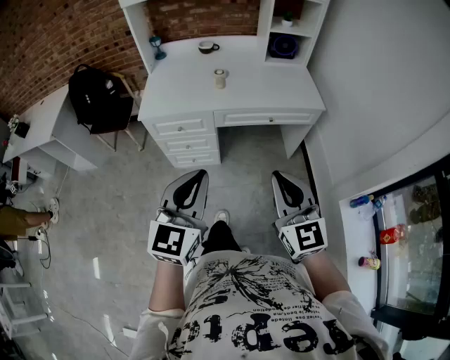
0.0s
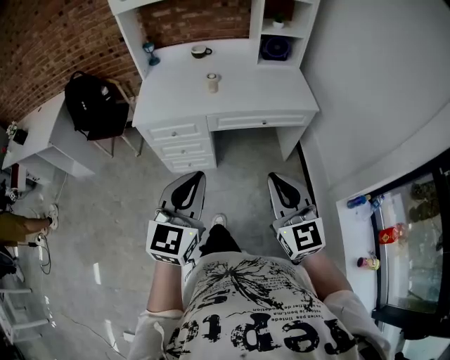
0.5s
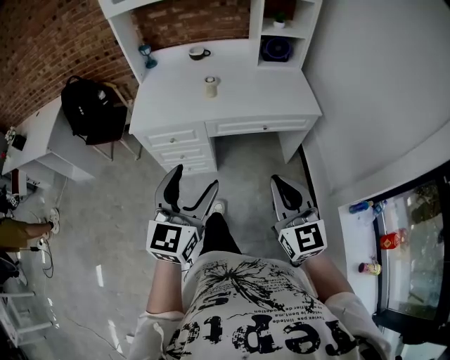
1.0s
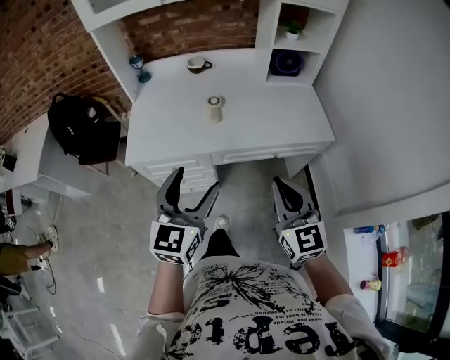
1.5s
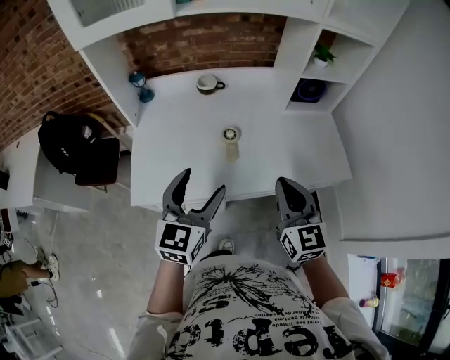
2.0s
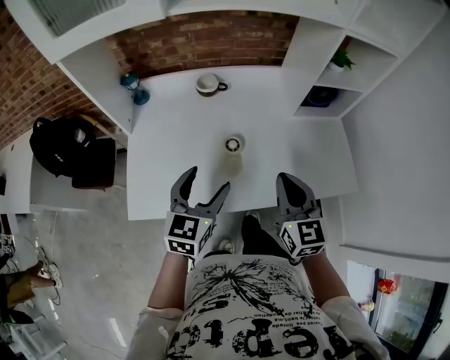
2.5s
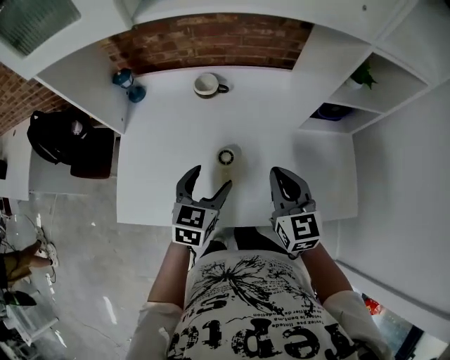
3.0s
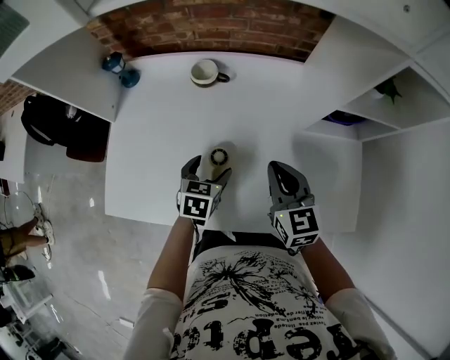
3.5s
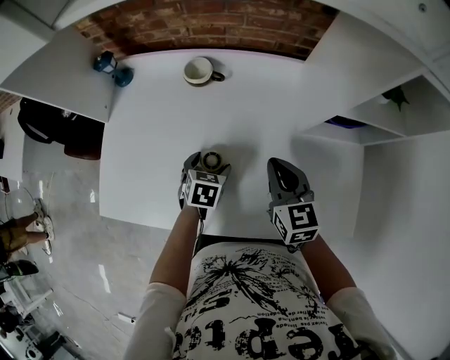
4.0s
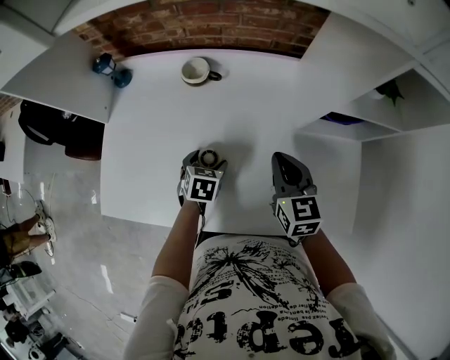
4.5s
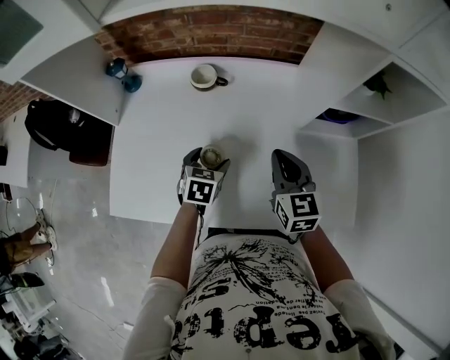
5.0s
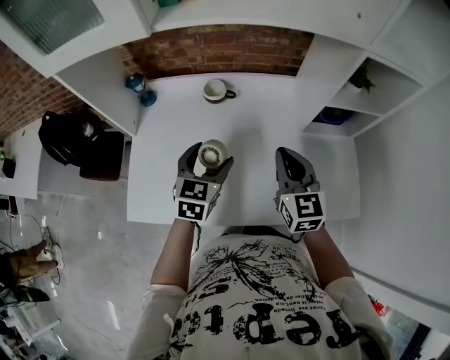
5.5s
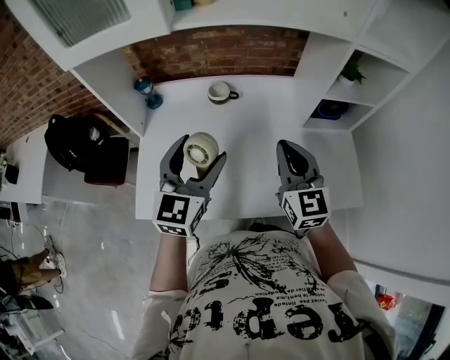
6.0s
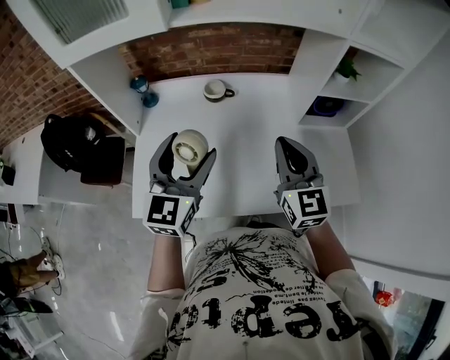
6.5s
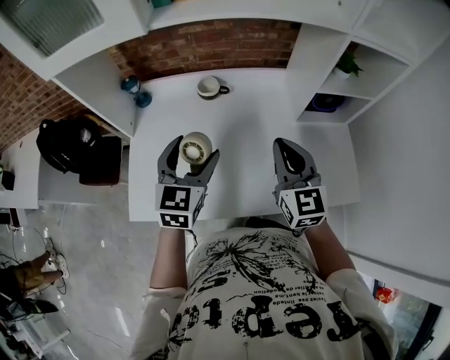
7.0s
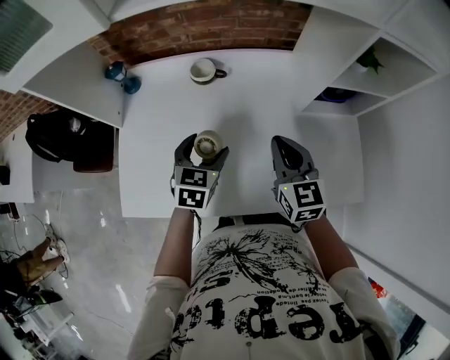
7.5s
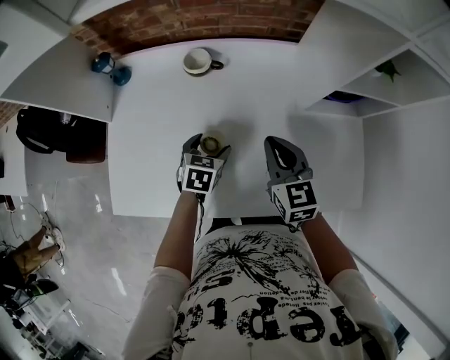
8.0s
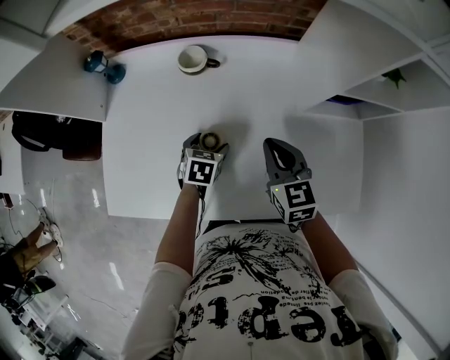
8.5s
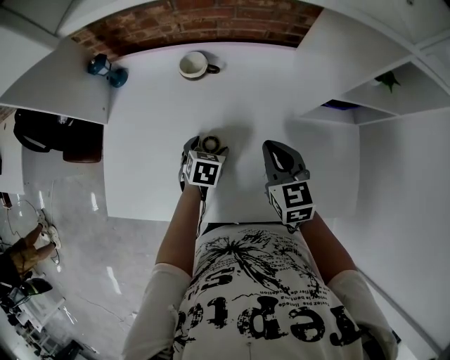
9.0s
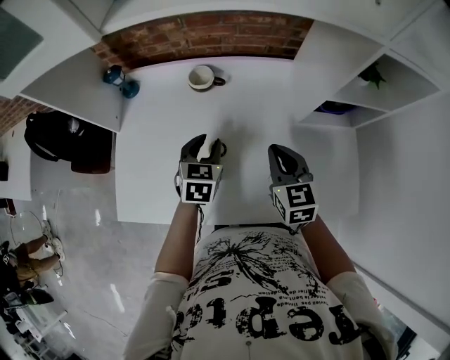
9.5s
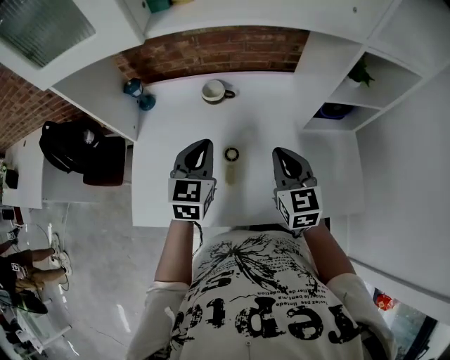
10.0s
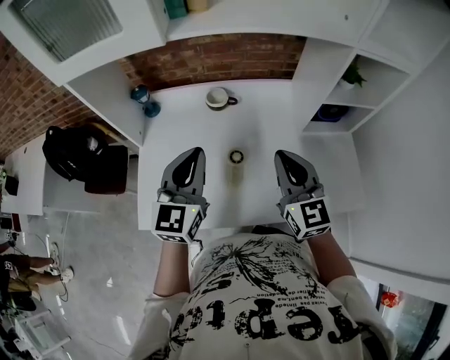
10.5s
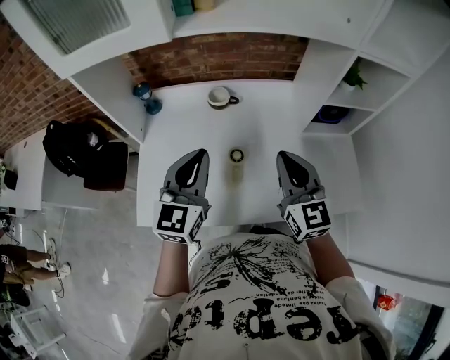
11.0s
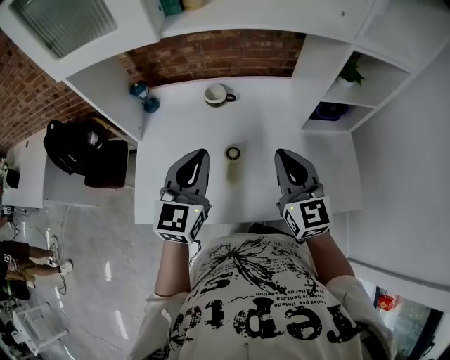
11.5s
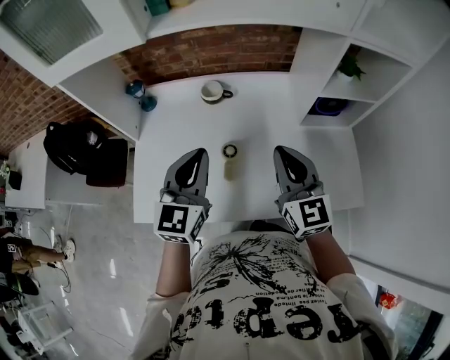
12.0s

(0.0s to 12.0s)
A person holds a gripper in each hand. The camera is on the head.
0.0s - 2.0s: Both grippers are carried forward, approximately 50 cm. The left gripper opens its fingers.
2.0s - 4.0s: Both grippers move forward and downward, some 40 cm. The left gripper tips its fingers downward by roughly 40 degrees; the right gripper changes its angle by approximately 20 degrees.
4.0s - 6.0s: The right gripper shifts approximately 25 cm upward, backward and to the left, and swivels roughly 20 degrees; the left gripper shifts about 35 cm upward, and tips its fingers upward by approximately 50 degrees.
6.0s - 8.0s: The left gripper moves downward, roughly 30 cm, and tips its fingers downward by roughly 40 degrees. The right gripper travels downward and forward by roughly 20 cm, and turns by about 20 degrees.
8.0s - 10.0s: The right gripper moves upward, about 10 cm. Meanwhile the left gripper shifts roughly 20 cm upward, swivels about 30 degrees, and closes.
10.0s - 12.0s: The left gripper moves upward and backward, approximately 10 cm, while the right gripper shifts some 5 cm upward.

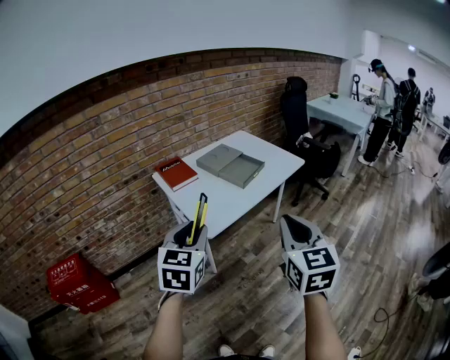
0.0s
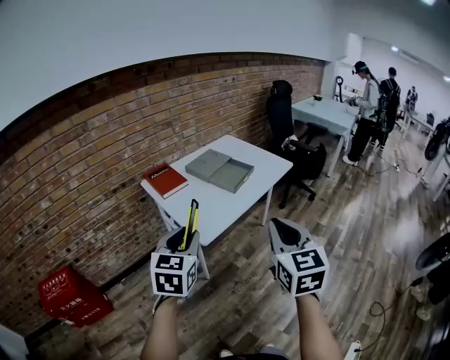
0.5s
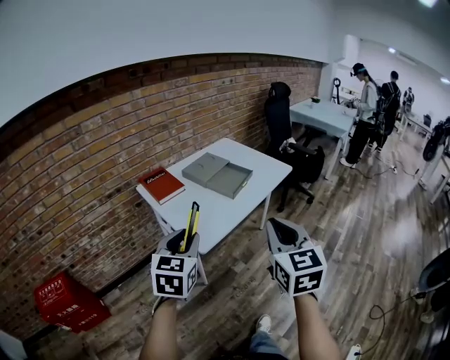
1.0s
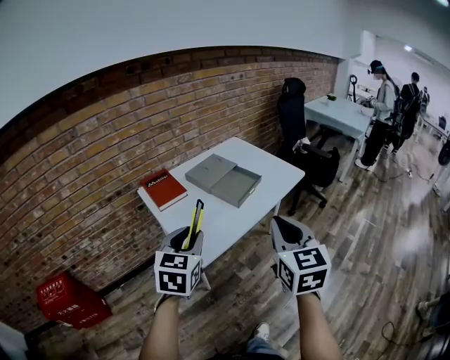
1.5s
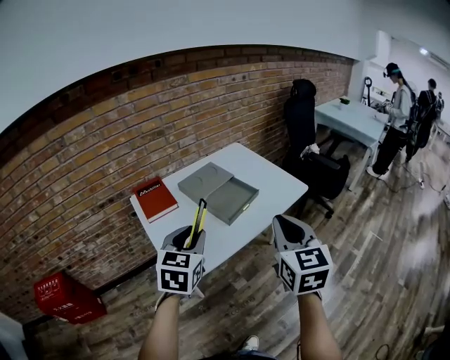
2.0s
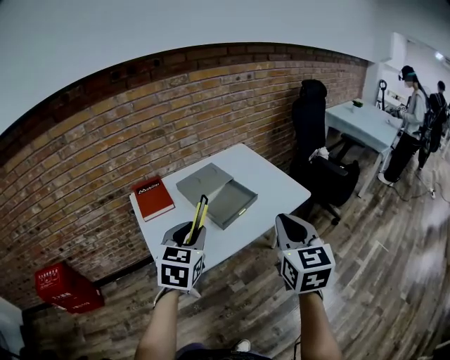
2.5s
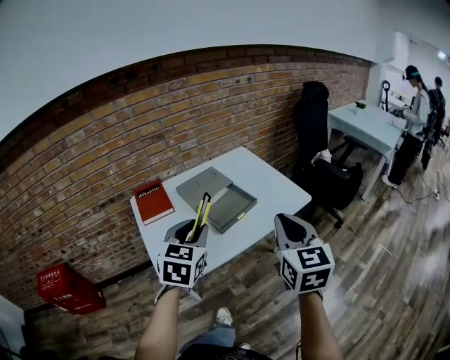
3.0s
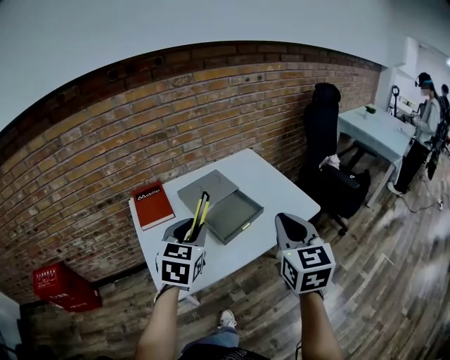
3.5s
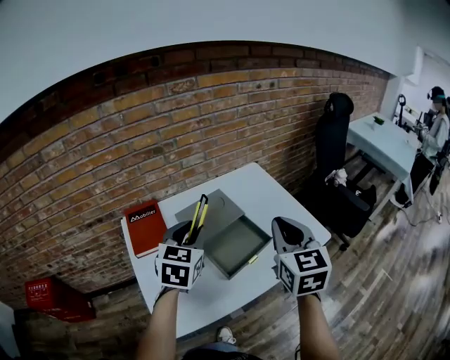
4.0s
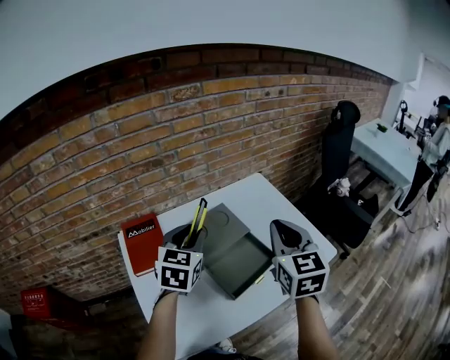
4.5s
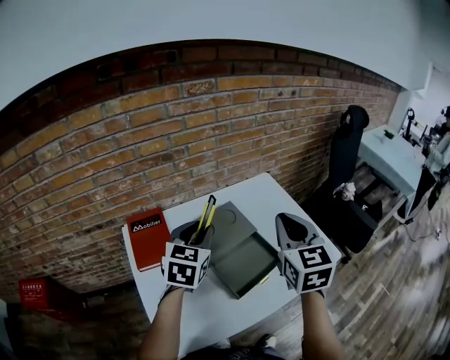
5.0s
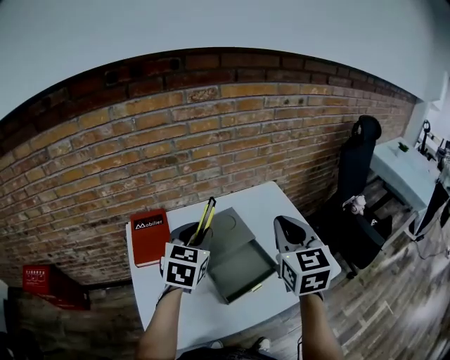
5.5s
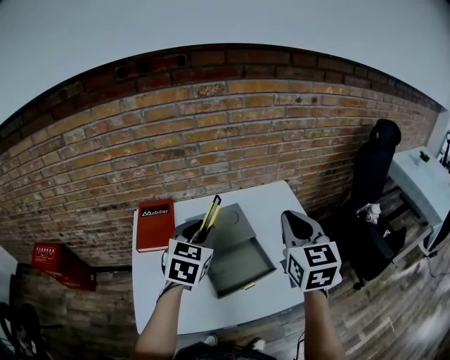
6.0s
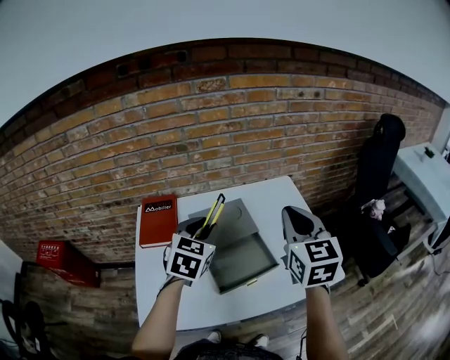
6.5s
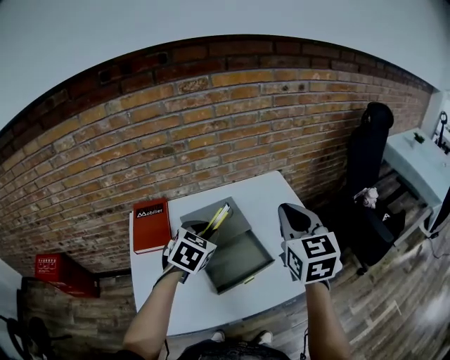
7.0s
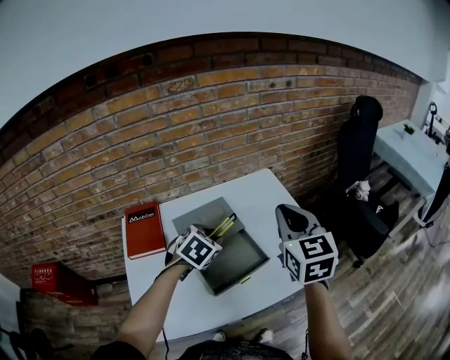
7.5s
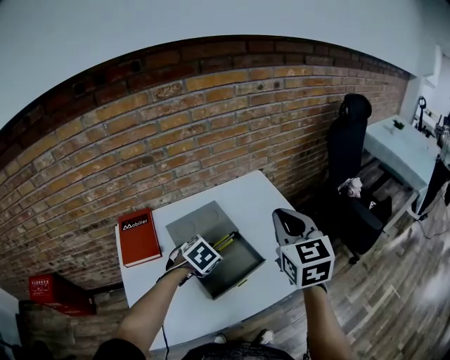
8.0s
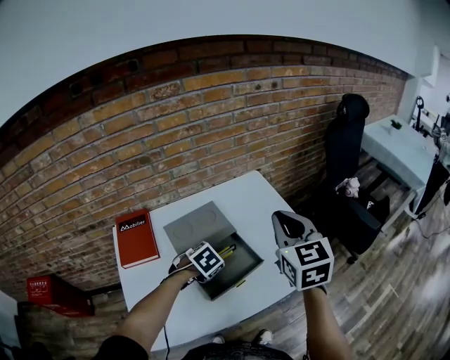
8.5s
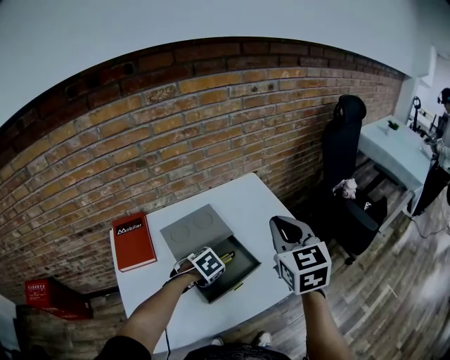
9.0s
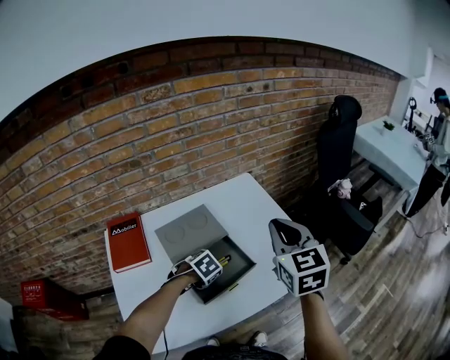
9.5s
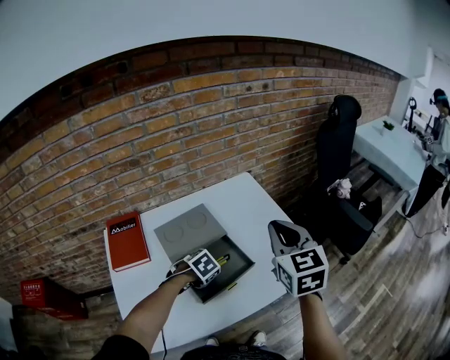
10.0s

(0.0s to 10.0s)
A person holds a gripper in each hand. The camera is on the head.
0.0s - 2.0s: Both grippers travel together forward, approximately 25 cm.
2.0s - 4.0s: The grippers both shift forward by approximately 25 cm.
4.0s - 6.0s: The left gripper travels forward by about 5 cm. The right gripper heads forward, covering roughly 10 cm.
6.0s - 8.0s: The left gripper is displaced downward and to the right by some 20 cm, and points its fingers some 40 degrees further downward.
8.0s - 10.0s: The left gripper heads downward, covering approximately 10 cm.

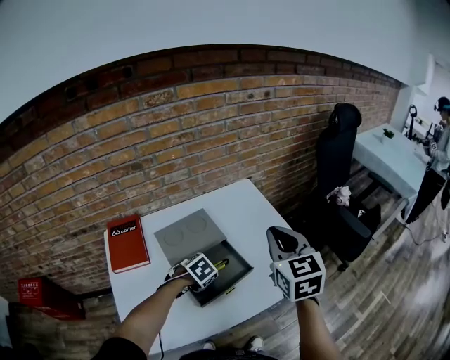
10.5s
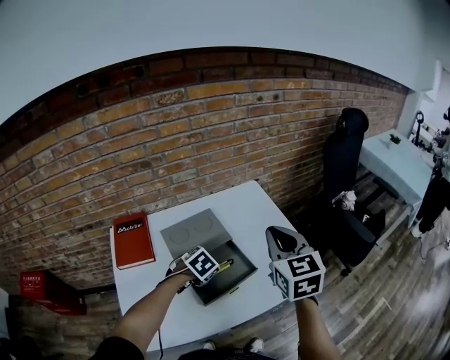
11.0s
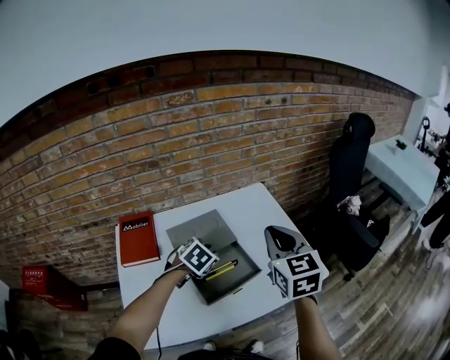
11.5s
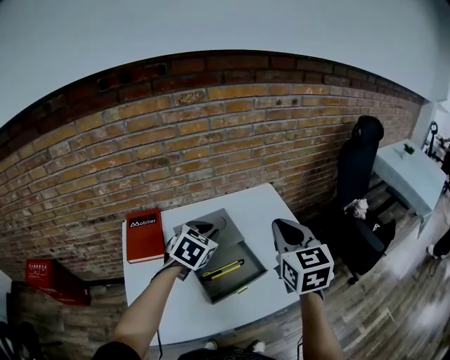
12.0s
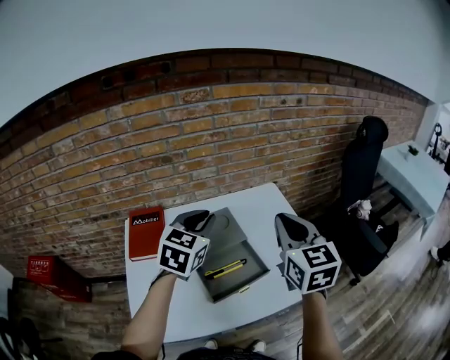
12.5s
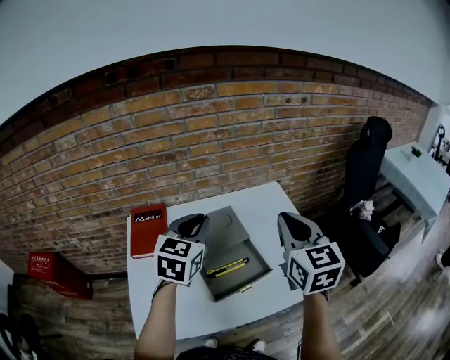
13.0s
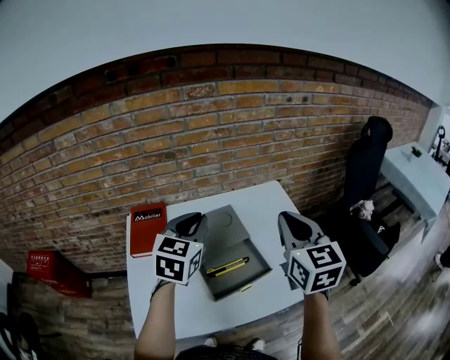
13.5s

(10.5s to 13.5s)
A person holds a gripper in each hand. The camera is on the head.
10.5s - 12.0s: The left gripper shifts about 20 cm upward, and angles its fingers upward, by about 30 degrees. The right gripper moves about 5 cm.
12.0s - 13.5s: The left gripper is displaced upward by approximately 10 cm, and swivels roughly 30 degrees.

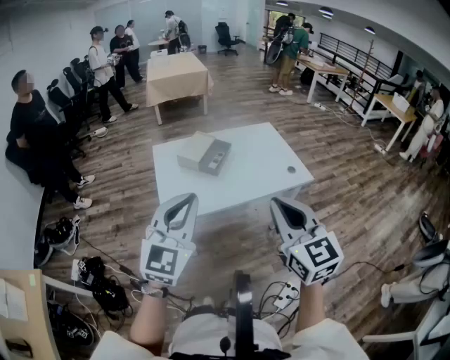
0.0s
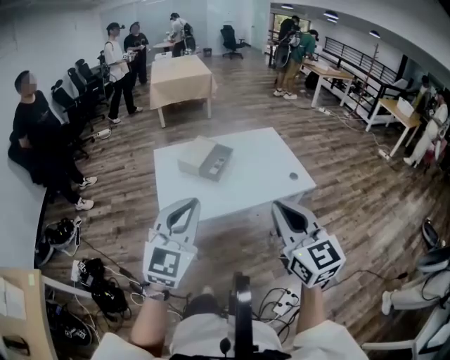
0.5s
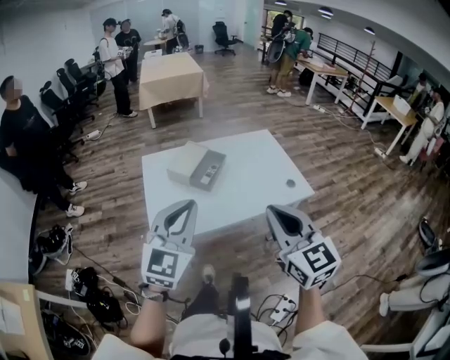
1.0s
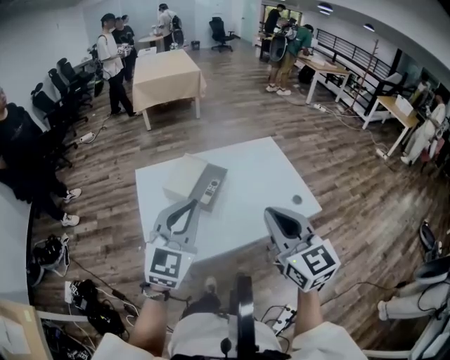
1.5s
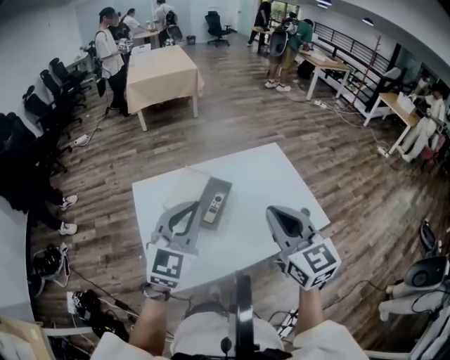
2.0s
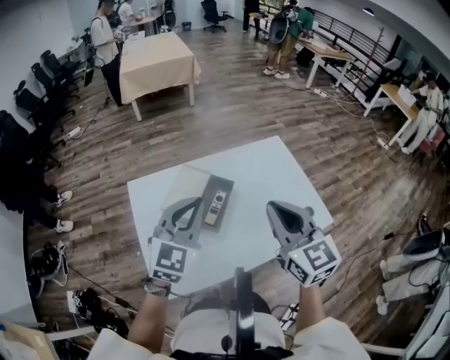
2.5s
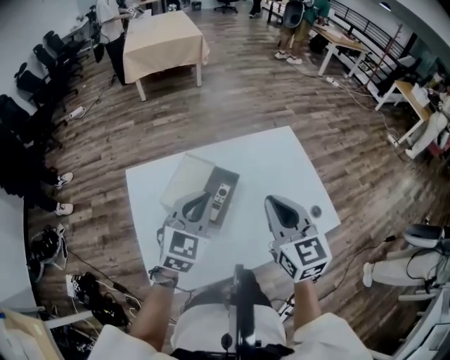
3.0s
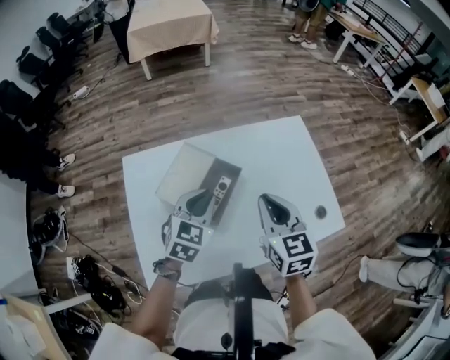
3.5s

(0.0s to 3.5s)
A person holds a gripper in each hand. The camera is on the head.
0.0s - 2.0s: The grippers both shift forward by about 35 cm.
2.0s - 3.5s: The right gripper is displaced forward and downward by about 20 cm, while the left gripper is displaced downward and forward by roughly 25 cm, and swivels roughly 30 degrees.
